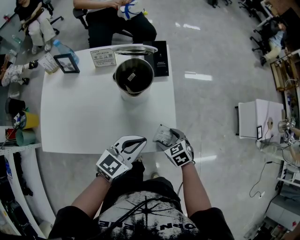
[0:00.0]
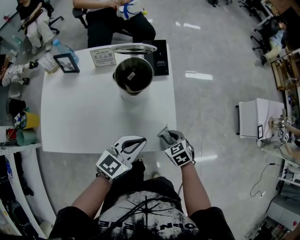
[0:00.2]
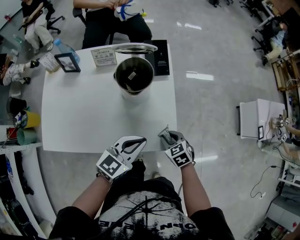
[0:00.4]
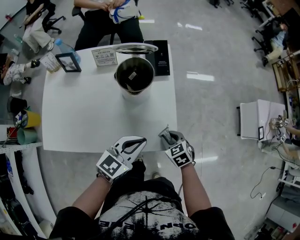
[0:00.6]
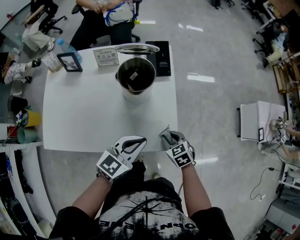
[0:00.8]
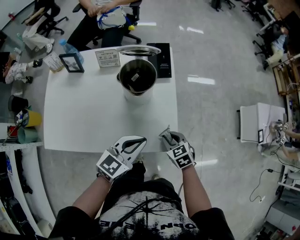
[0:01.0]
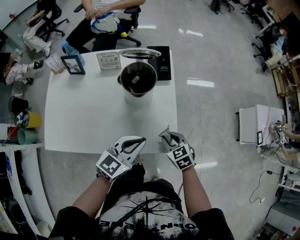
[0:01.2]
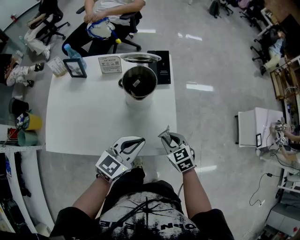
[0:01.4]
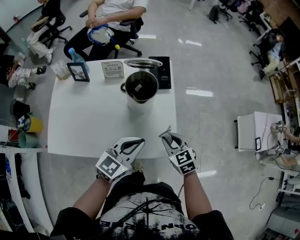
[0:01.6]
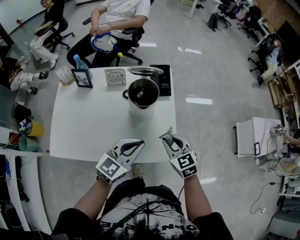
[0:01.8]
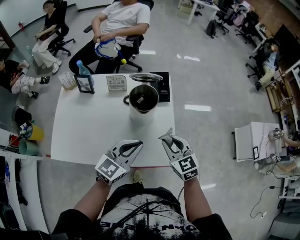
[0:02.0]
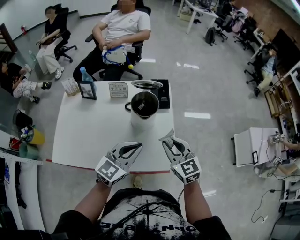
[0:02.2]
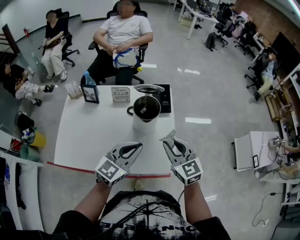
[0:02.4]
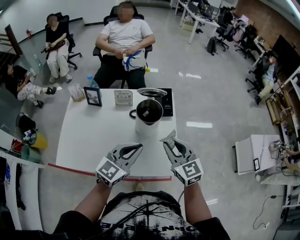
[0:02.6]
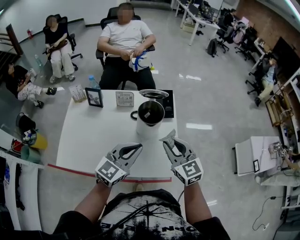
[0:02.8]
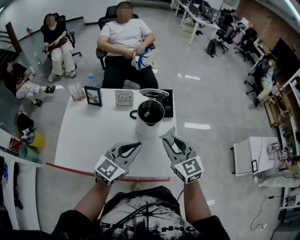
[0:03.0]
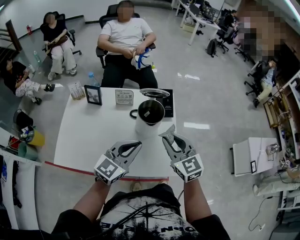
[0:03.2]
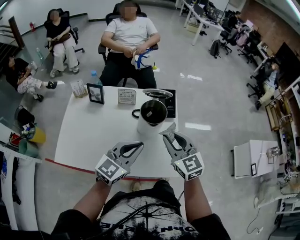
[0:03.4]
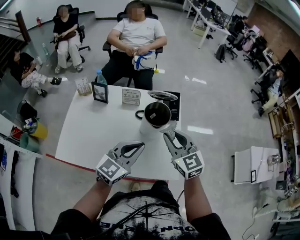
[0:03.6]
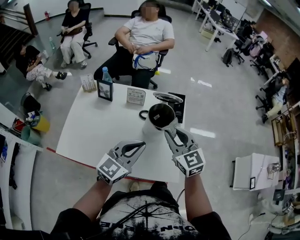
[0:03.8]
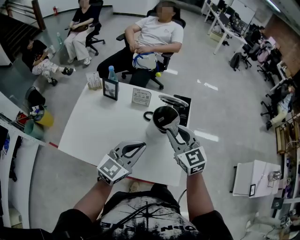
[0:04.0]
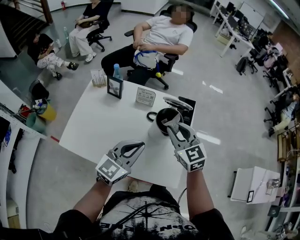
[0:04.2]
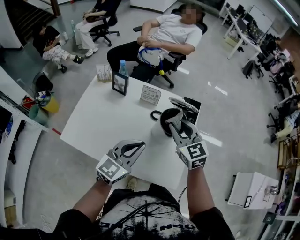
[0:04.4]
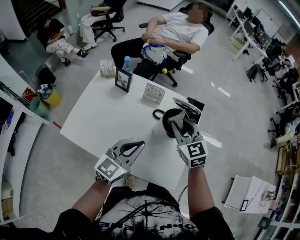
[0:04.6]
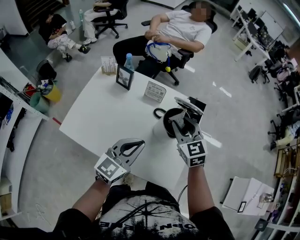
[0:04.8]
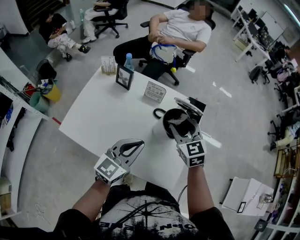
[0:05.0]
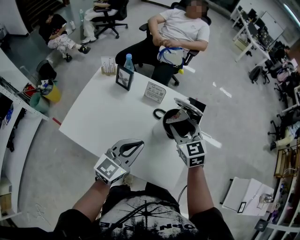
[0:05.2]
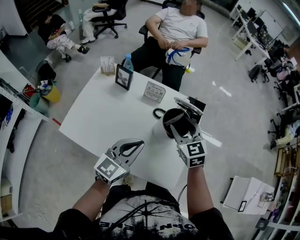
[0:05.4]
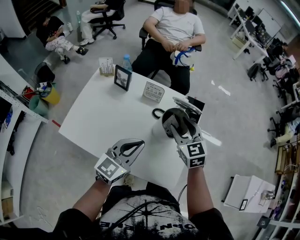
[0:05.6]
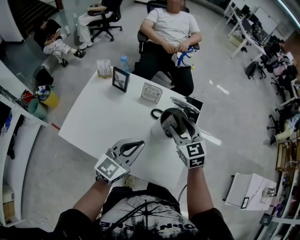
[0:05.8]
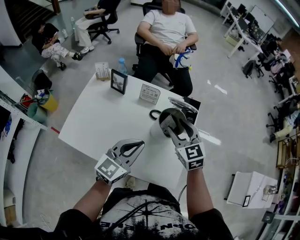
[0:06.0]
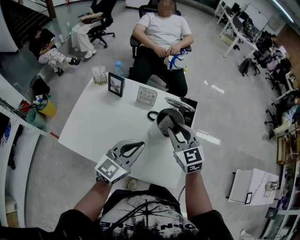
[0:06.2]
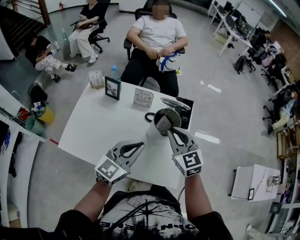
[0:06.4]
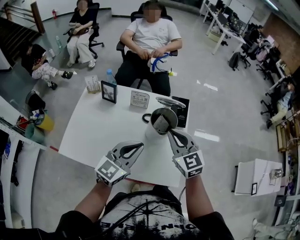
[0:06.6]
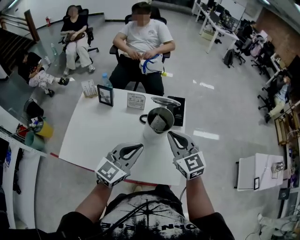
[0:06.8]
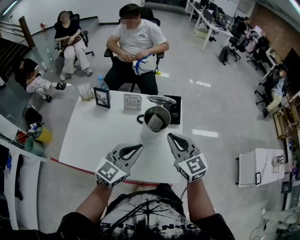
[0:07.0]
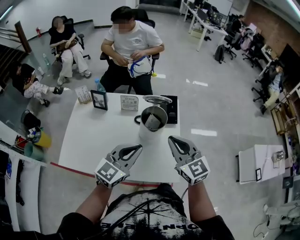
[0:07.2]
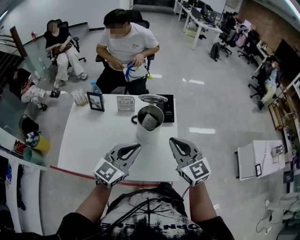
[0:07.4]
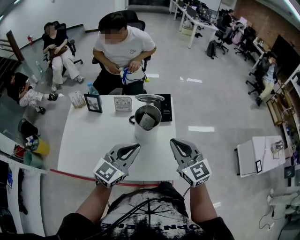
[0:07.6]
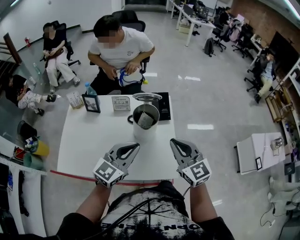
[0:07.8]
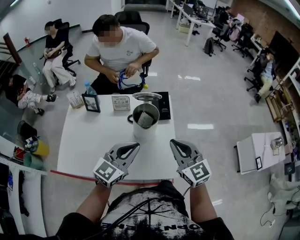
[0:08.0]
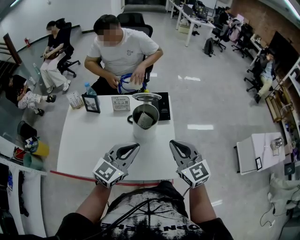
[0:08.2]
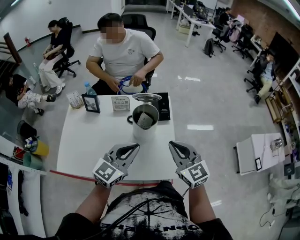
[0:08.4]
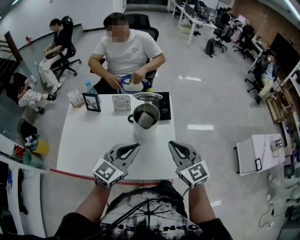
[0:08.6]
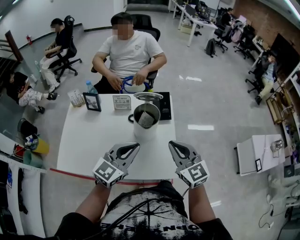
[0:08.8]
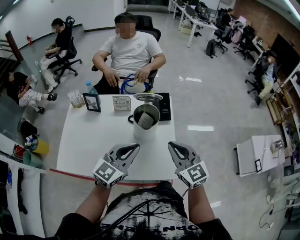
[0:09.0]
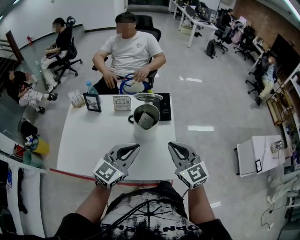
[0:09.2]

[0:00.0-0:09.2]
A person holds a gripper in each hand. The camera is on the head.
0:00.0 to 0:01.6: The right gripper shifts roughly 10 cm upward, and closes.
0:01.6 to 0:03.0: The right gripper goes approximately 15 cm upward, and changes its angle by approximately 30 degrees, while the left gripper moves upward and to the left, approximately 10 cm.
0:03.0 to 0:04.6: The right gripper travels forward and to the left by some 15 cm.
0:04.6 to 0:06.2: The grippers make only small movements.
0:06.2 to 0:07.6: The left gripper shifts by roughly 5 cm, while the right gripper is displaced backward and to the right by approximately 15 cm.
0:07.6 to 0:09.2: There are only small adjustments of the grippers.

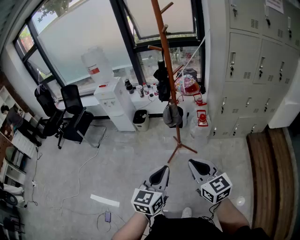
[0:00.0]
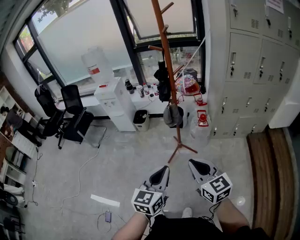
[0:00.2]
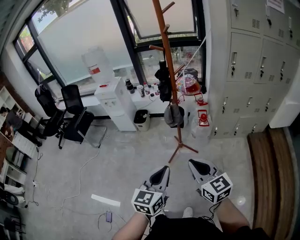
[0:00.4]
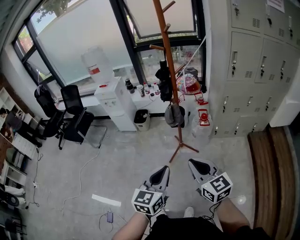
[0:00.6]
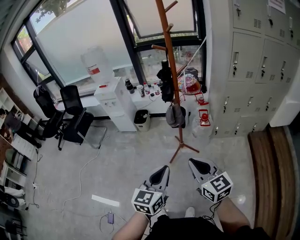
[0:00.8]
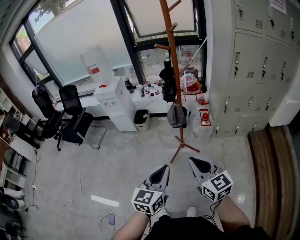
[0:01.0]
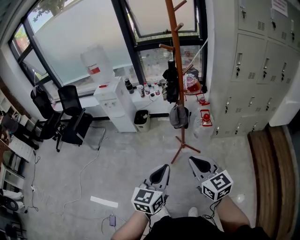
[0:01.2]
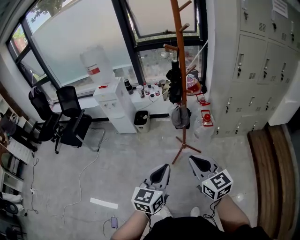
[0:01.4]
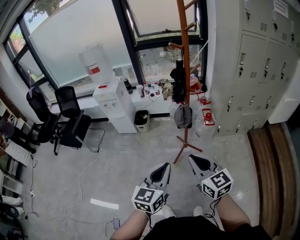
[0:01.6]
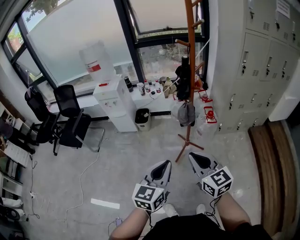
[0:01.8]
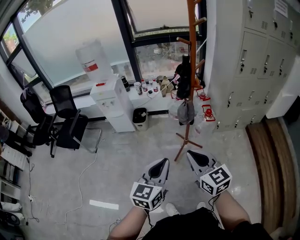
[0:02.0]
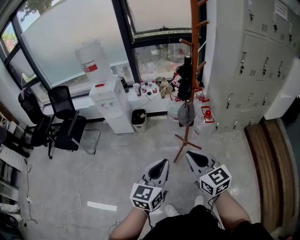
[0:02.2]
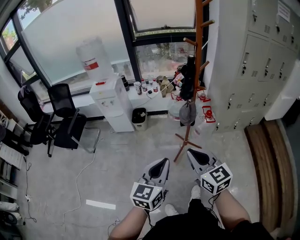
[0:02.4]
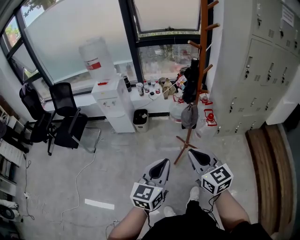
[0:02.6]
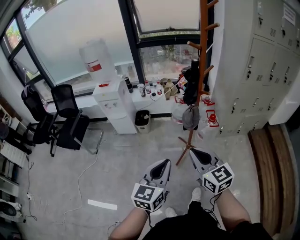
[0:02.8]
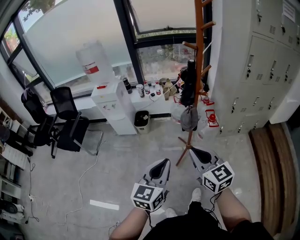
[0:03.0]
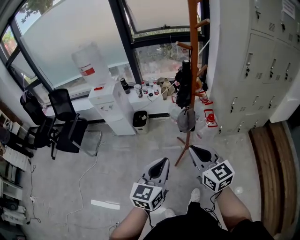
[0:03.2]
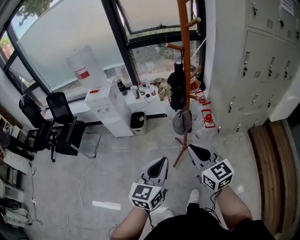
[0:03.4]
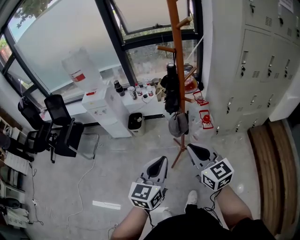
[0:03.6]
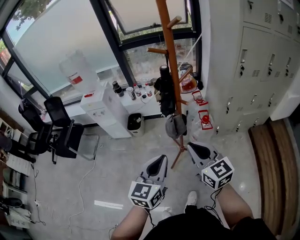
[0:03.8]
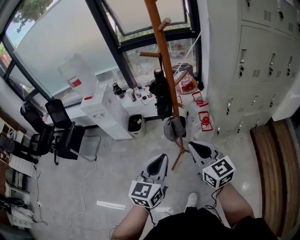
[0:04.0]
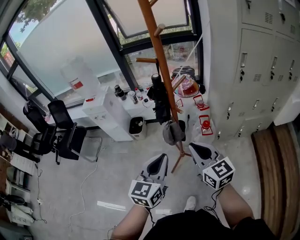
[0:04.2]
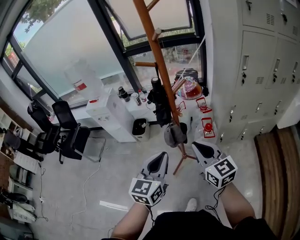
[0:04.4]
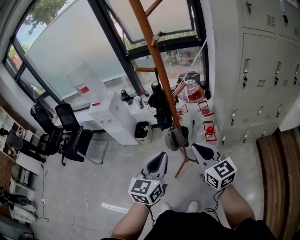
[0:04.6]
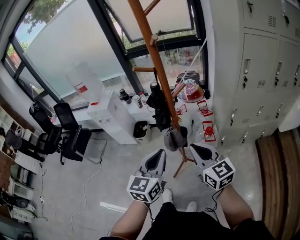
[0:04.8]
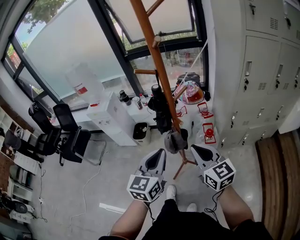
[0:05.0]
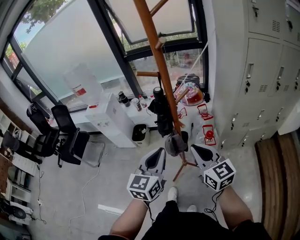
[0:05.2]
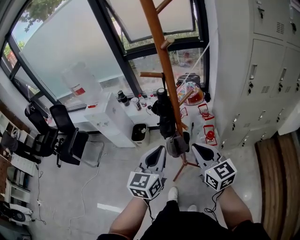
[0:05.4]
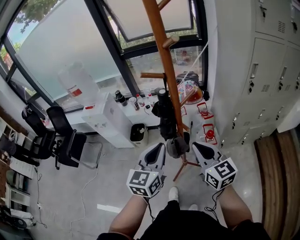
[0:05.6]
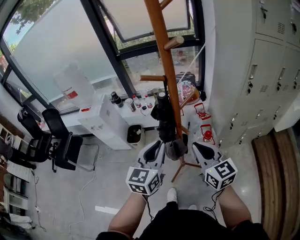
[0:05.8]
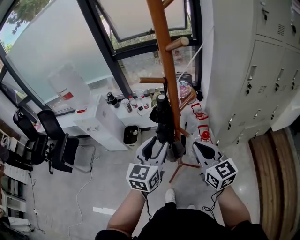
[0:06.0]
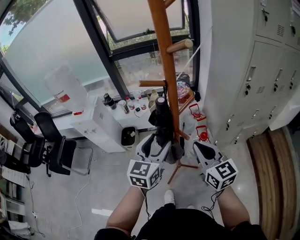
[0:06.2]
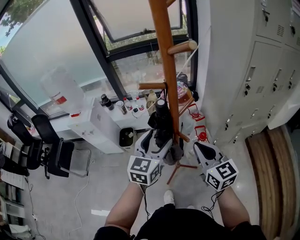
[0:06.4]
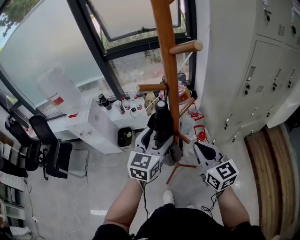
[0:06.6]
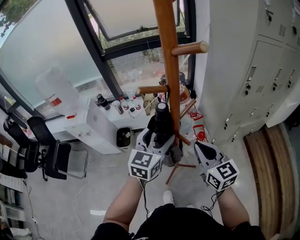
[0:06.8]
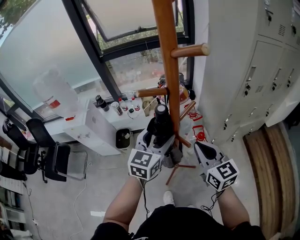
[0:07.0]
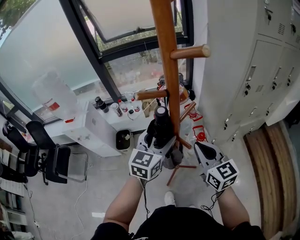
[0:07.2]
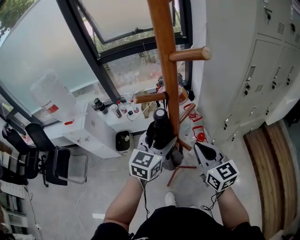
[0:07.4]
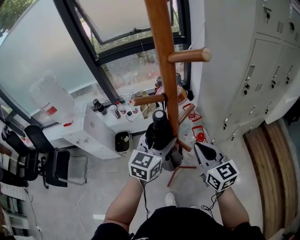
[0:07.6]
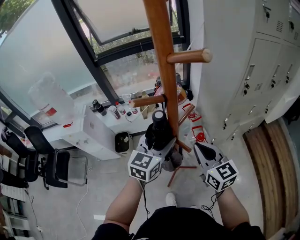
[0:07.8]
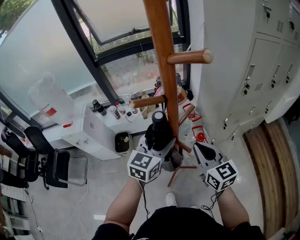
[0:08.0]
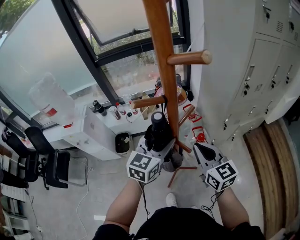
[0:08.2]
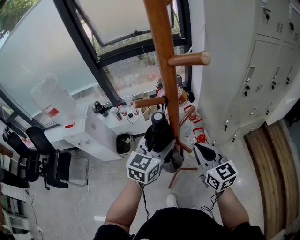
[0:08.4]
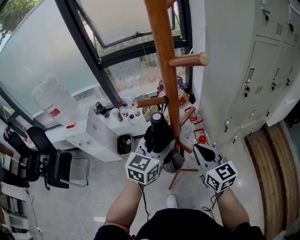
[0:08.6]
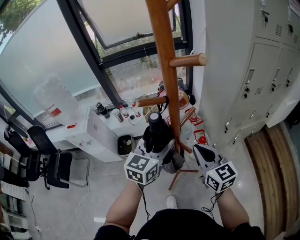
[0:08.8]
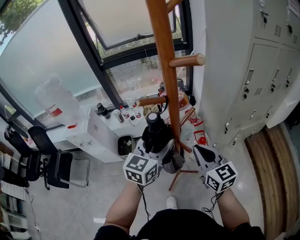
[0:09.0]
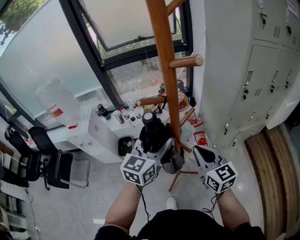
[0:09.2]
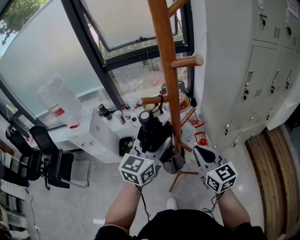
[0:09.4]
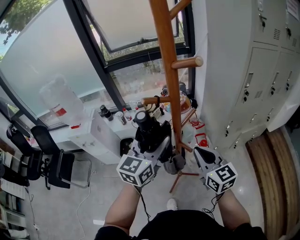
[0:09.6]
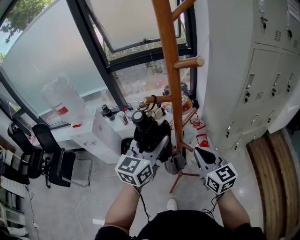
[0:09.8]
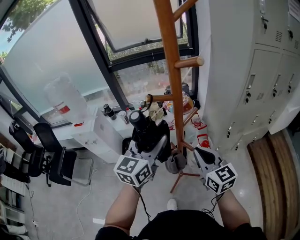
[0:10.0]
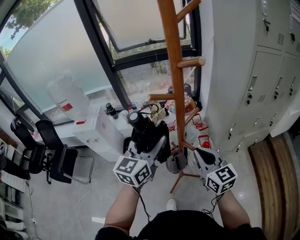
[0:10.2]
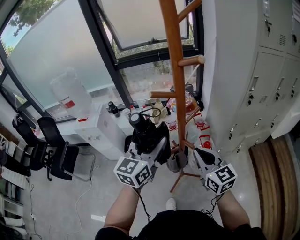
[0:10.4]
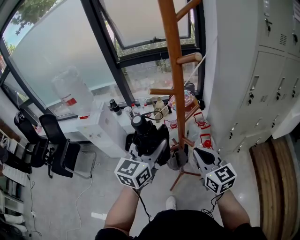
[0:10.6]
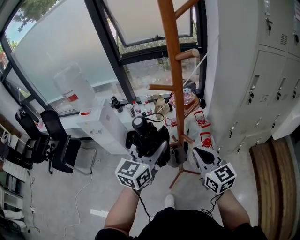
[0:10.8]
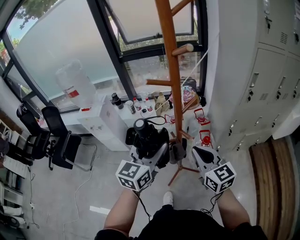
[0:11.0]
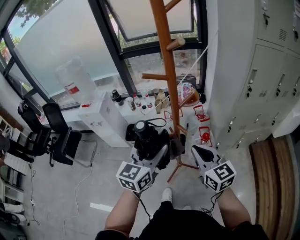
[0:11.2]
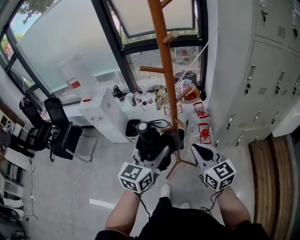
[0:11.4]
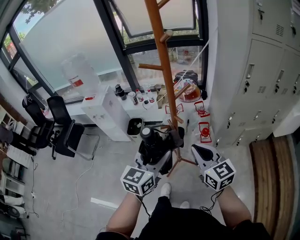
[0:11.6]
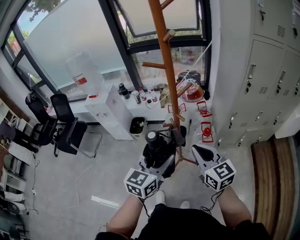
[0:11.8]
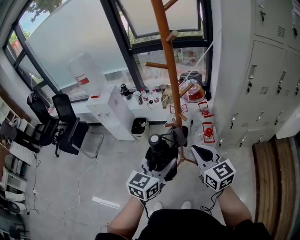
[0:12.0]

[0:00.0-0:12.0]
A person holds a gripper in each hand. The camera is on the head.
0:00.0 to 0:01.6: Both grippers travel together to the left and forward, about 15 cm.
0:01.6 to 0:03.0: The two grippers go some 10 cm forward and to the left.
0:03.0 to 0:04.4: The grippers both shift to the right and forward by roughly 20 cm.
0:04.4 to 0:06.0: The right gripper shifts about 10 cm forward; the left gripper travels forward by about 15 cm, and opens up.
0:06.0 to 0:07.6: The right gripper heads forward, covering some 5 cm. Meanwhile the left gripper moves forward, about 10 cm, and opens up.
0:07.6 to 0:09.0: The grippers move only a little.
0:09.0 to 0:10.4: The left gripper shifts about 5 cm to the left.
0:10.4 to 0:12.0: The right gripper shifts about 10 cm backward; the left gripper shifts about 20 cm backward and downward.

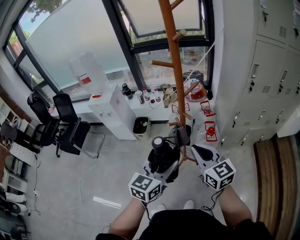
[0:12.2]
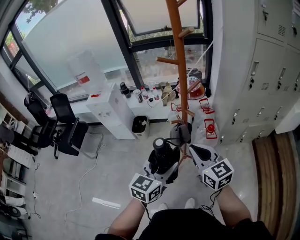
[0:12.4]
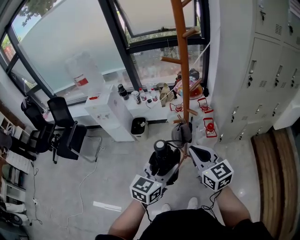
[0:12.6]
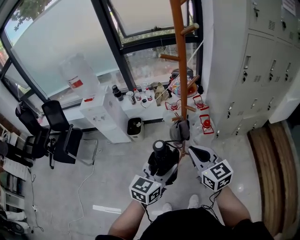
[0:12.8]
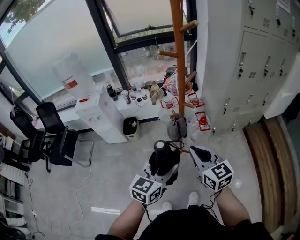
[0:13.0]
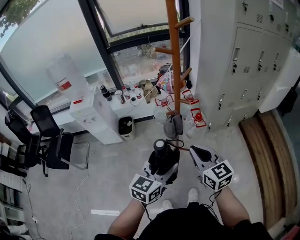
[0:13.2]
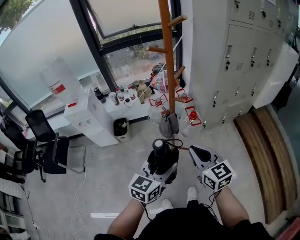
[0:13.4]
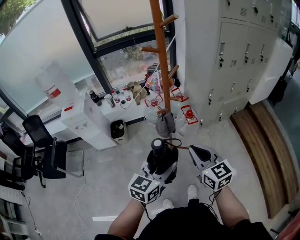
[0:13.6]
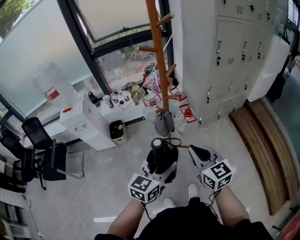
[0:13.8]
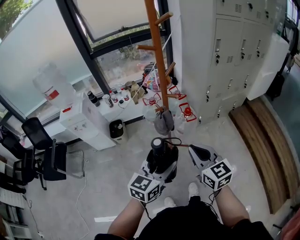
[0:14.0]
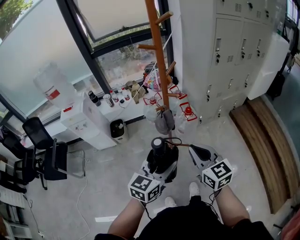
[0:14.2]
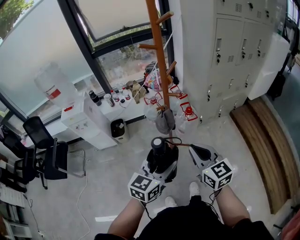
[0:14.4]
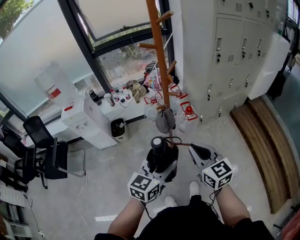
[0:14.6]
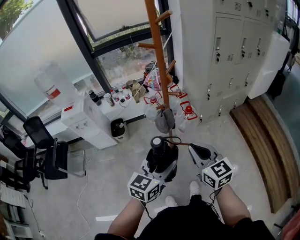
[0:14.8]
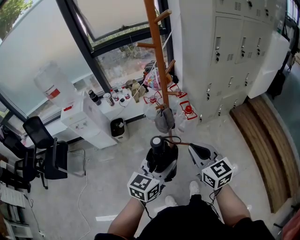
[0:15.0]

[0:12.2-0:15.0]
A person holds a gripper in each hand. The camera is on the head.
0:12.2 to 0:13.6: Both grippers travel together backward, some 10 cm. The left gripper swivels roughly 20 degrees. Meanwhile the right gripper rotates approximately 20 degrees.
0:13.6 to 0:15.0: There are only small adjustments of the grippers.
